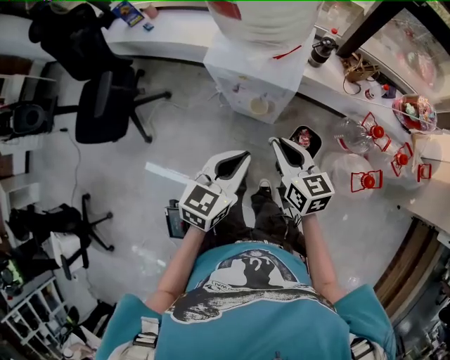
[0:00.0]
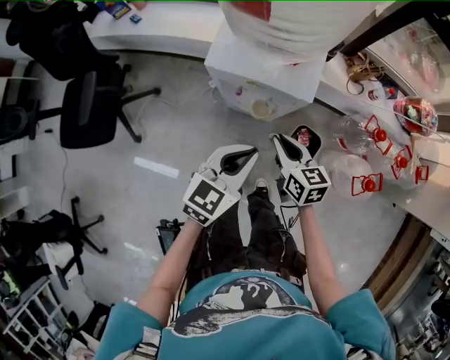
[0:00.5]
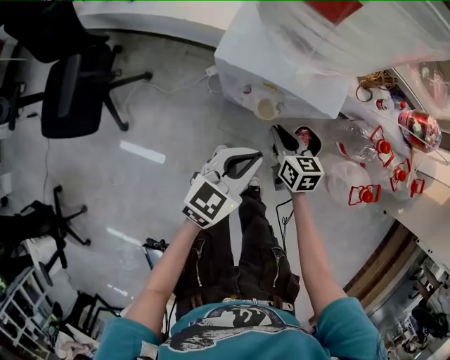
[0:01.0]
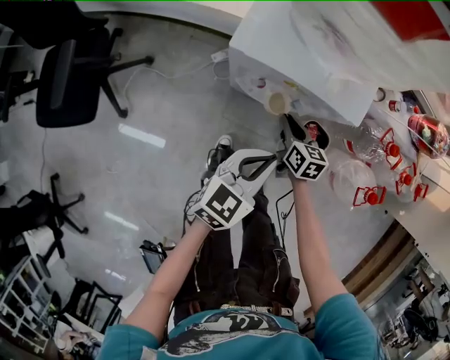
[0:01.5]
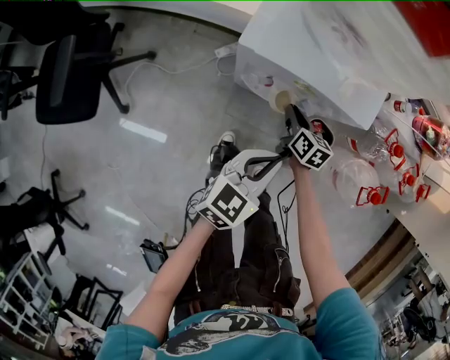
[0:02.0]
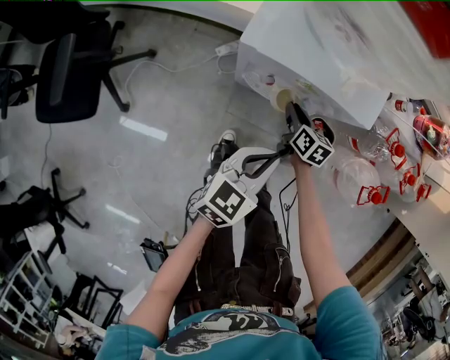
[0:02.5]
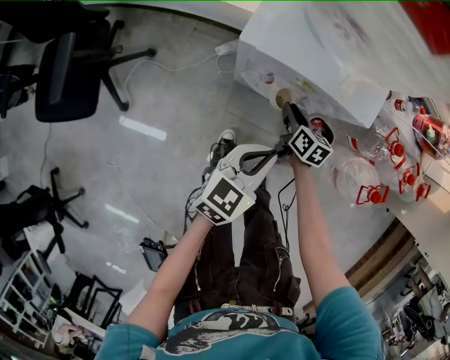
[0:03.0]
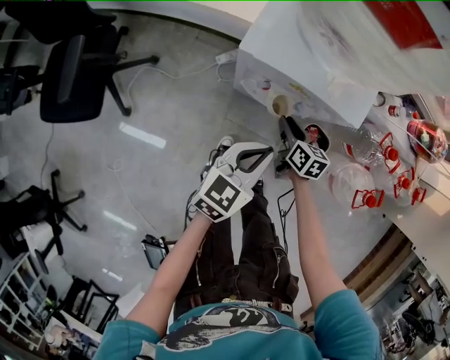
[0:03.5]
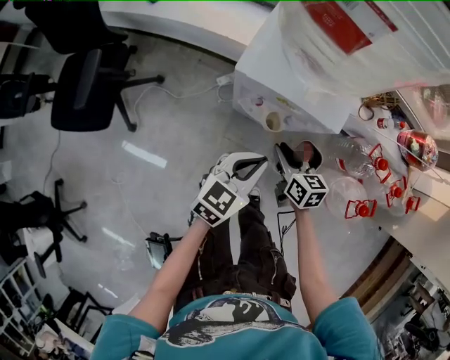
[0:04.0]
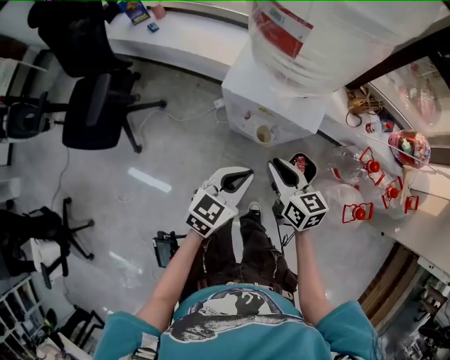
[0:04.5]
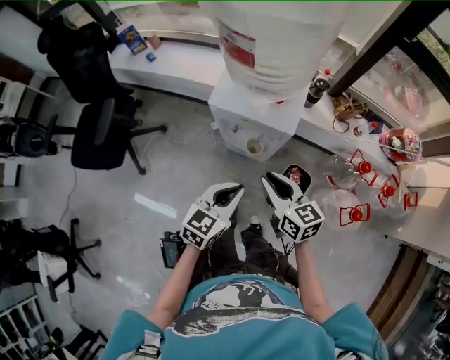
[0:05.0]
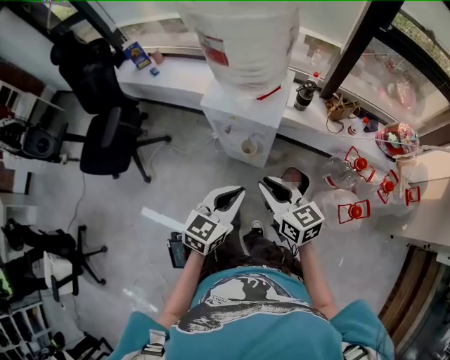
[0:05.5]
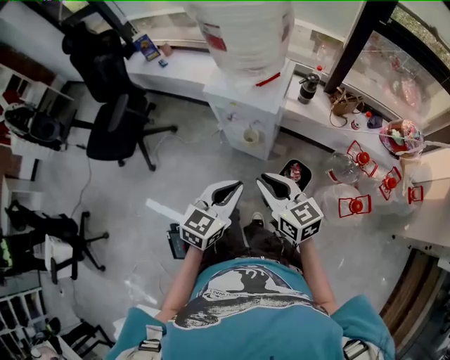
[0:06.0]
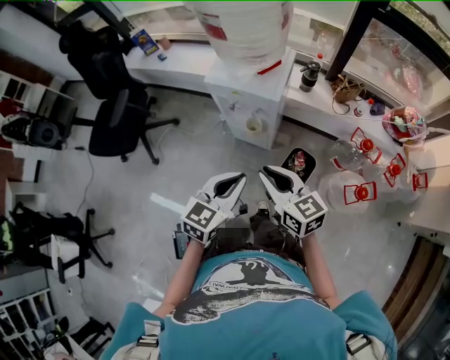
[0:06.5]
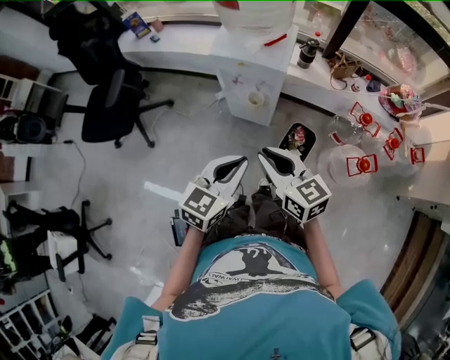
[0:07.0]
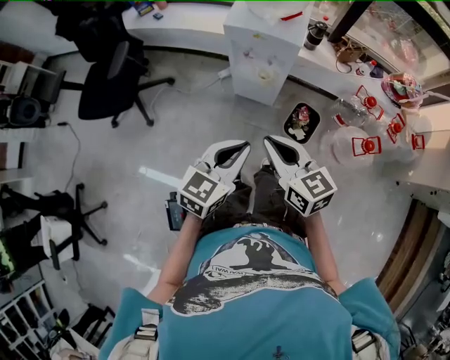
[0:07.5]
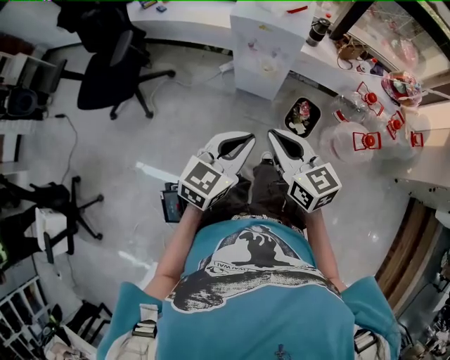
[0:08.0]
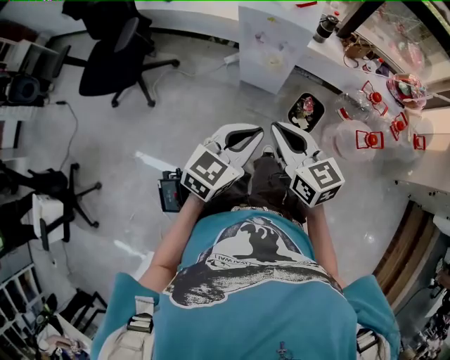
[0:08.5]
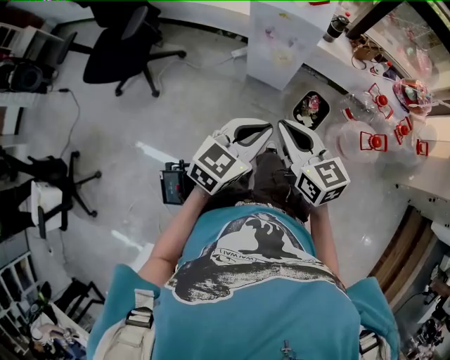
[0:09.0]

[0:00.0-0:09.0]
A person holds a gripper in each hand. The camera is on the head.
0:00.0 to 0:02.0: The right gripper travels downward and forward by some 30 cm, and turns by about 30 degrees, while the left gripper goes approximately 15 cm downward and forward.
0:02.0 to 0:04.5: The left gripper moves upward, approximately 10 cm. Meanwhile the right gripper moves upward and backward, some 25 cm, and swivels some 30 degrees.
0:04.5 to 0:07.0: The two grippers go roughly 20 cm backward and upward.
0:07.0 to 0:09.0: The left gripper travels backward by approximately 10 cm. The right gripper shifts about 10 cm backward and to the left.

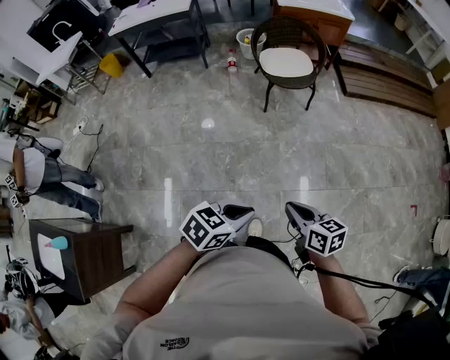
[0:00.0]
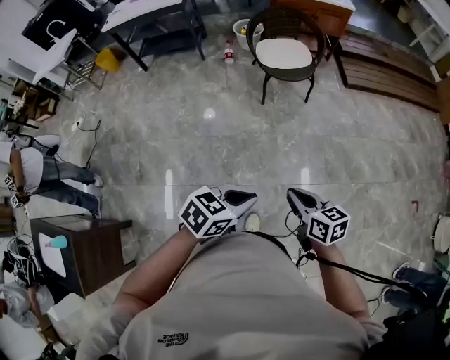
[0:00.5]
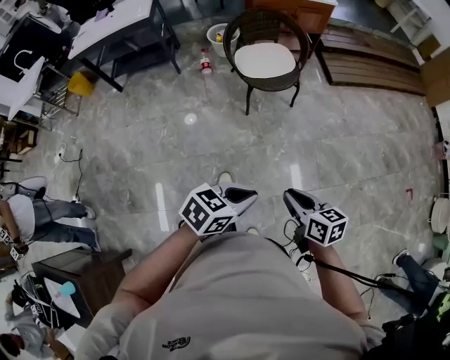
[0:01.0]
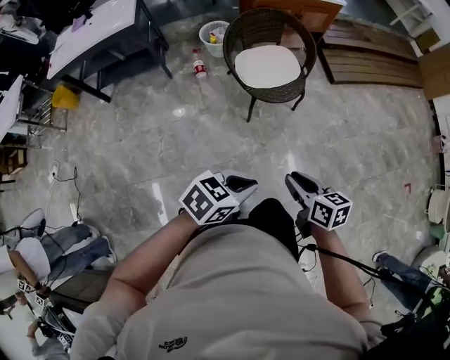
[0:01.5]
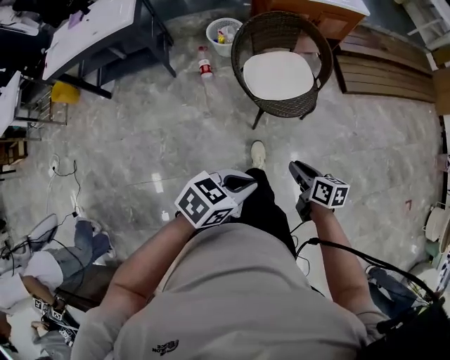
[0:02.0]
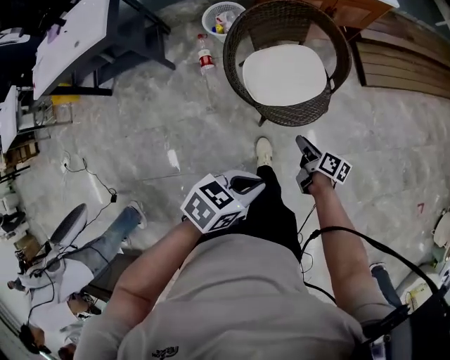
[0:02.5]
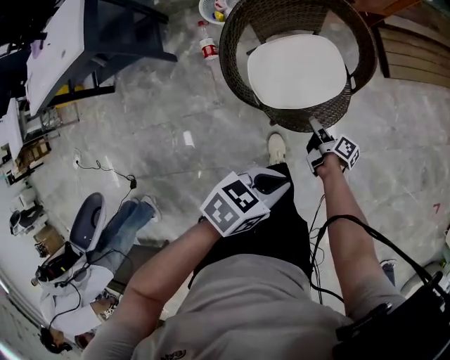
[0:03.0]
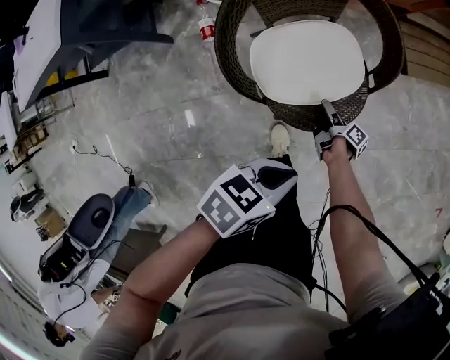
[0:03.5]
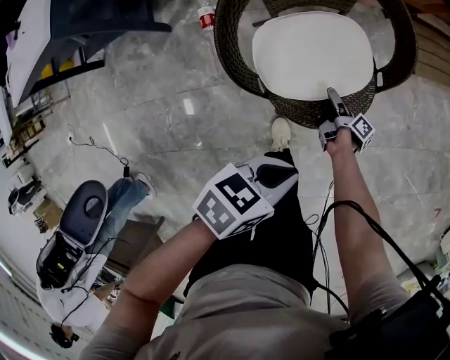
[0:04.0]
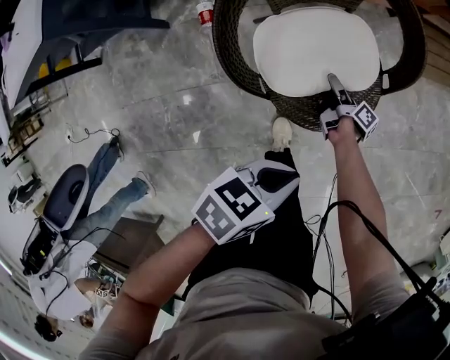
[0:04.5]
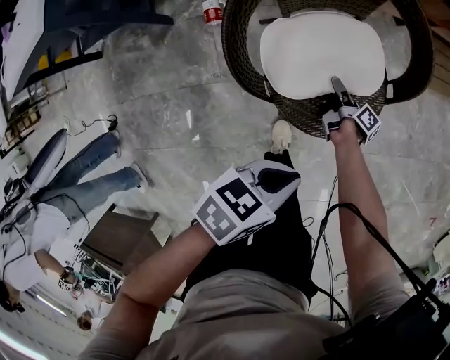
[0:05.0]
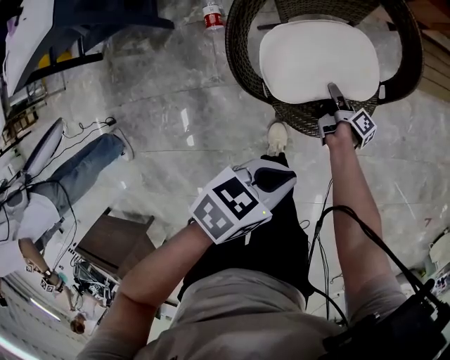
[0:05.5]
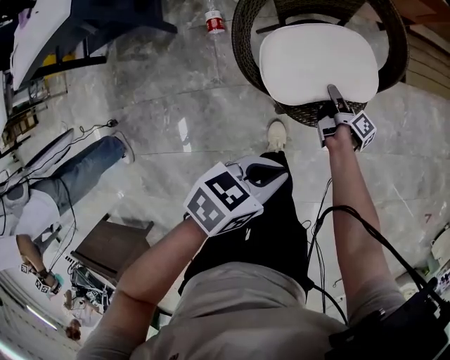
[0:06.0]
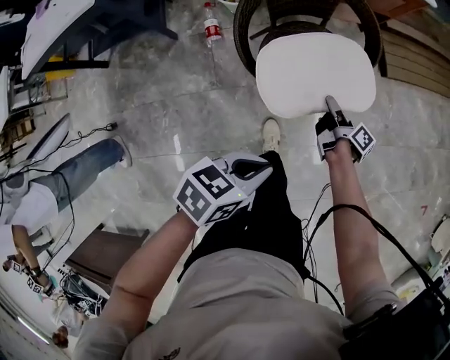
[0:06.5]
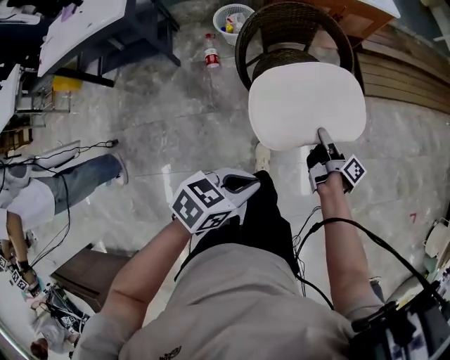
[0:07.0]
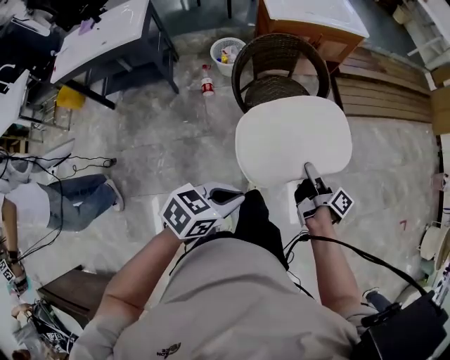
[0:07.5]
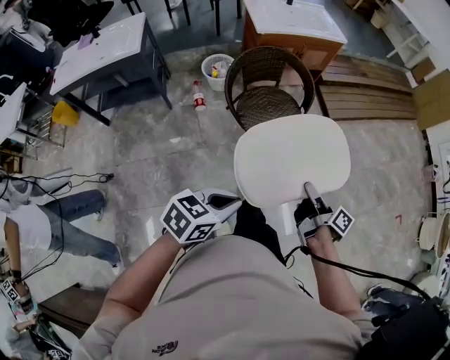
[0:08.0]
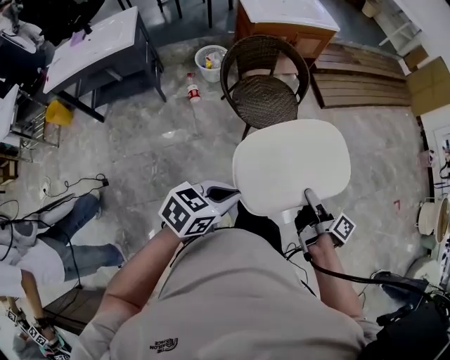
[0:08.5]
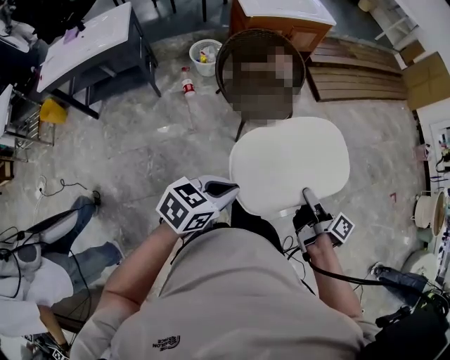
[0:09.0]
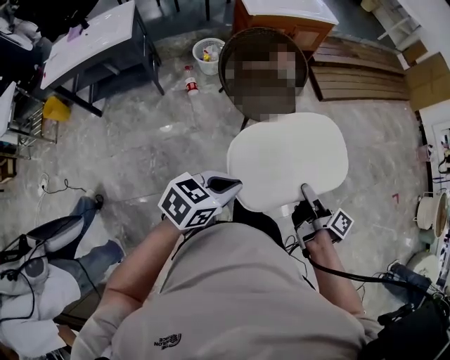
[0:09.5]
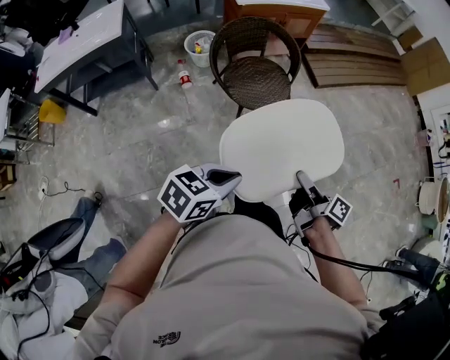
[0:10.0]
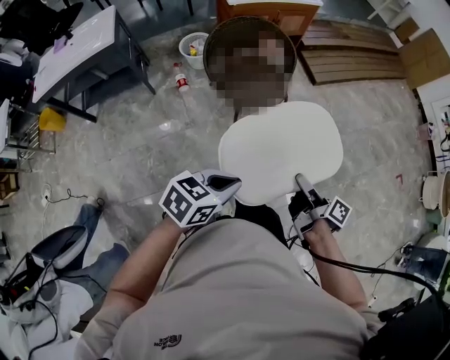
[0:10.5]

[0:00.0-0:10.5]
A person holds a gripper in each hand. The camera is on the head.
0:00.0 to 0:02.0: The left gripper shifts by about 50 cm.
0:02.0 to 0:04.0: The left gripper shifts by approximately 40 cm, and changes its angle by some 20 degrees.
0:04.0 to 0:06.5: The left gripper changes place by some 15 cm.
0:06.5 to 0:08.5: The left gripper changes place by roughly 30 cm.

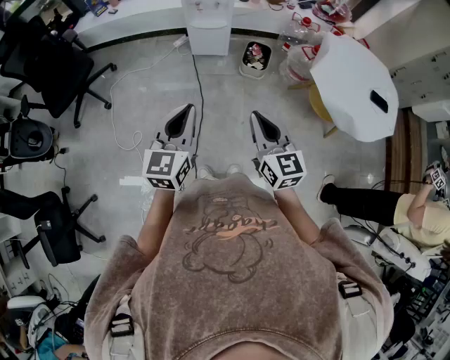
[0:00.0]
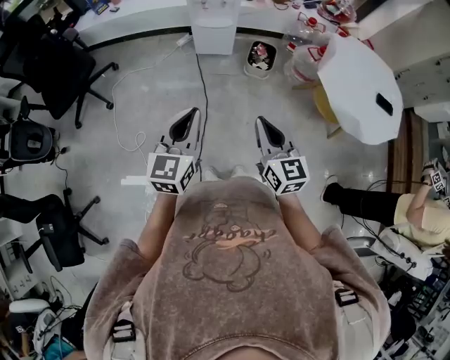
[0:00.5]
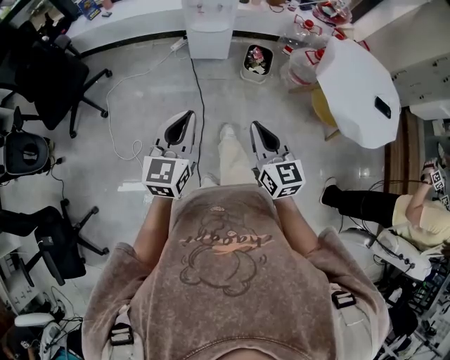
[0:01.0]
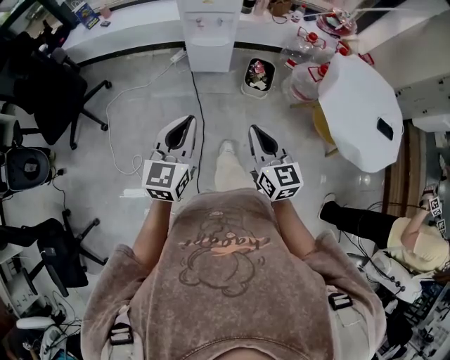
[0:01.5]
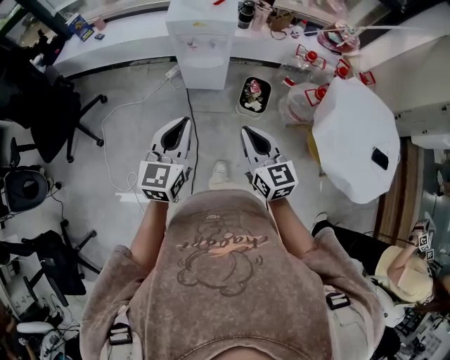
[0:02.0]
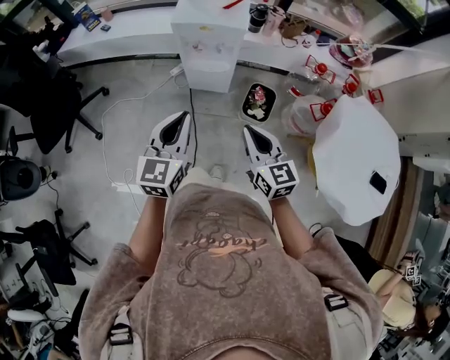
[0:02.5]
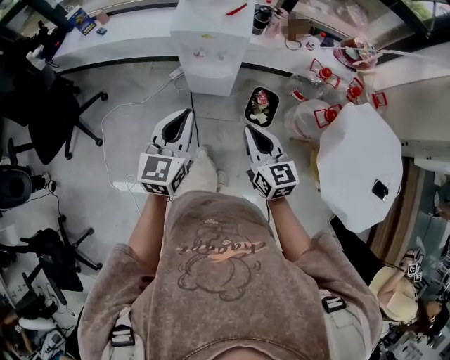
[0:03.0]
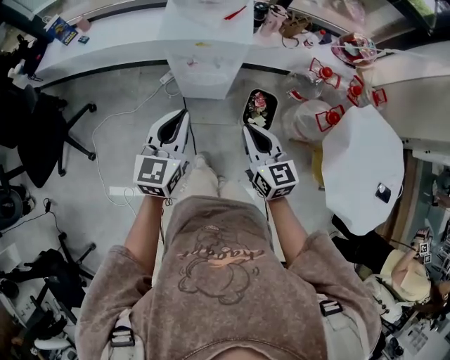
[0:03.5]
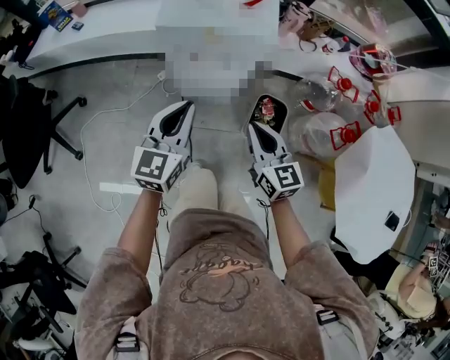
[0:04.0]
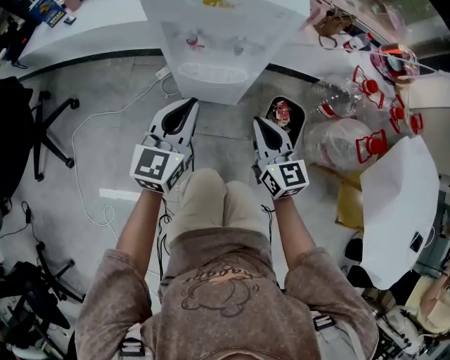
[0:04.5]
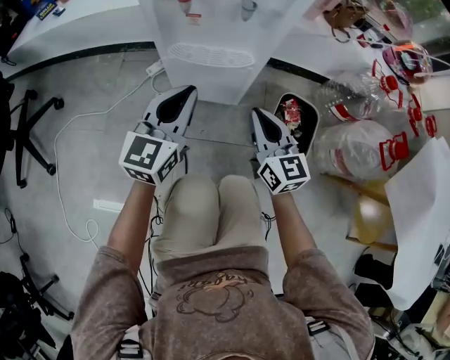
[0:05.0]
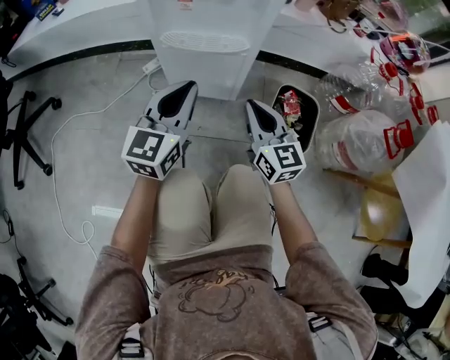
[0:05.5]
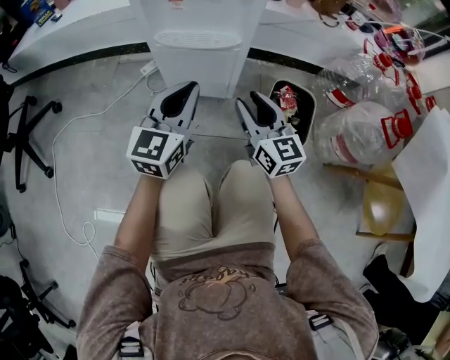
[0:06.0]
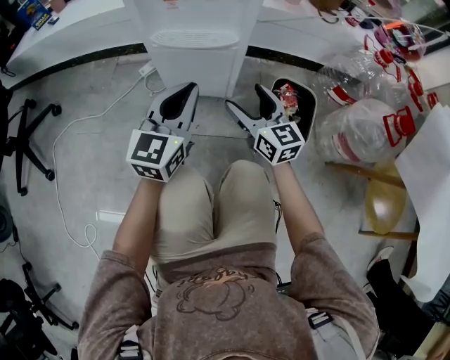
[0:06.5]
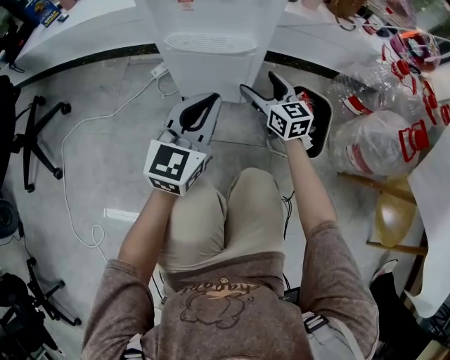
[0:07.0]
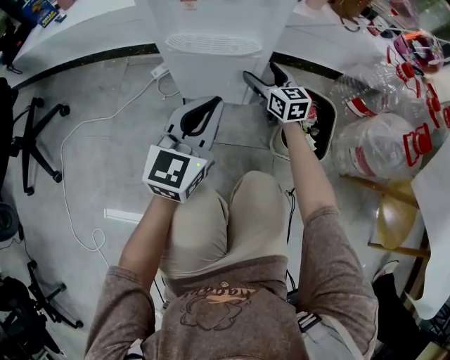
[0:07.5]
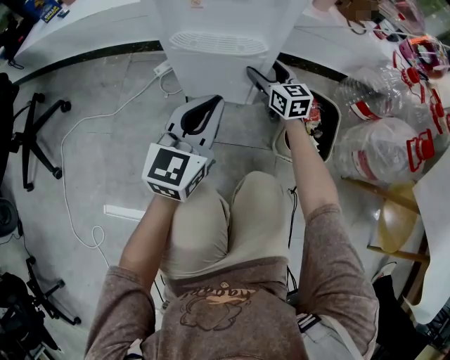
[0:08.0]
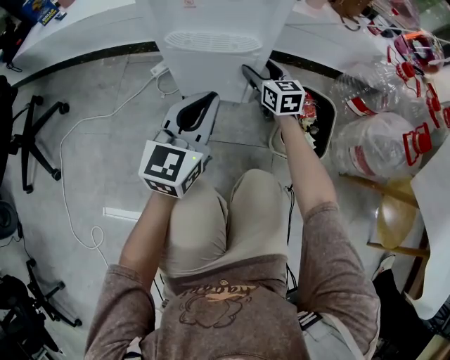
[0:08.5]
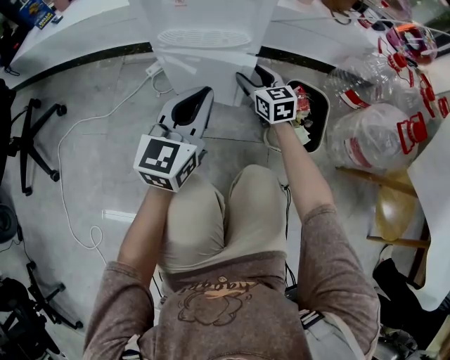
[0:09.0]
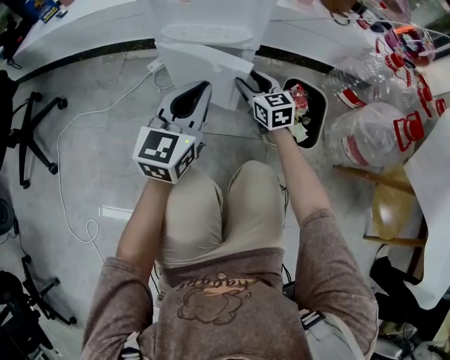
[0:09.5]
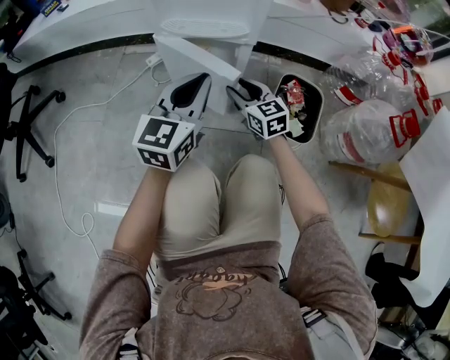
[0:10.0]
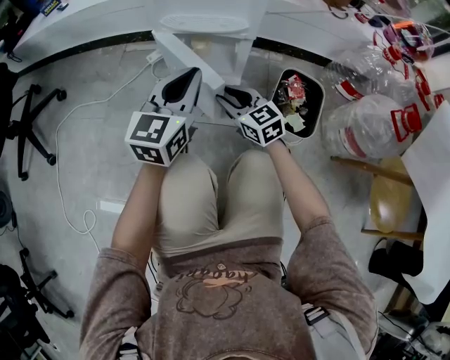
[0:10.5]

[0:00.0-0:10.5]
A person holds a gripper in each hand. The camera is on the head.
0:00.0 to 0:02.0: Both grippers travel together forward, about 30 cm.
0:02.0 to 0:04.0: Both grippers move forward and downward, some 35 cm.
0:04.0 to 0:06.5: Both grippers travel together downward, approximately 30 cm. The right gripper opens.
0:06.5 to 0:08.5: The right gripper heads forward and downward, covering about 20 cm.
0:08.5 to 0:10.5: The right gripper travels backward and to the left by approximately 20 cm, turns by about 20 degrees, and closes up.
